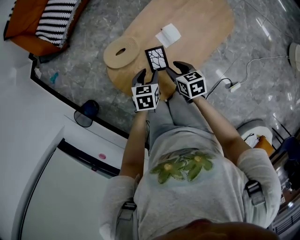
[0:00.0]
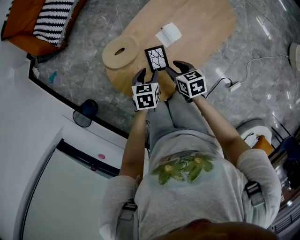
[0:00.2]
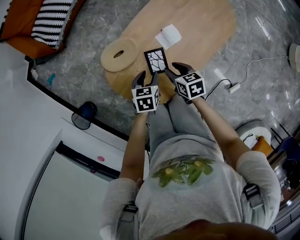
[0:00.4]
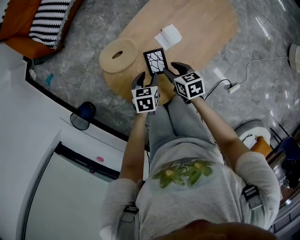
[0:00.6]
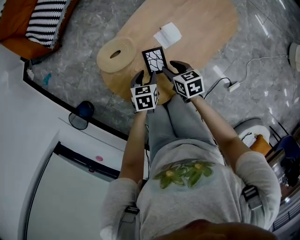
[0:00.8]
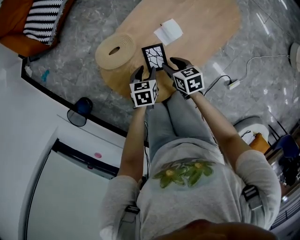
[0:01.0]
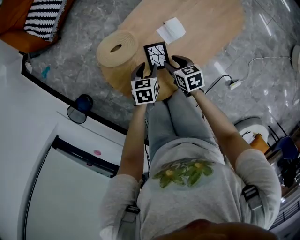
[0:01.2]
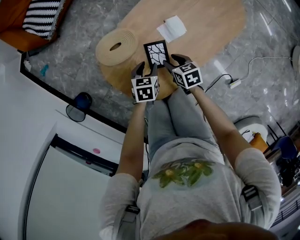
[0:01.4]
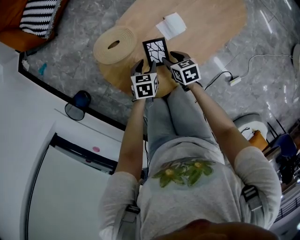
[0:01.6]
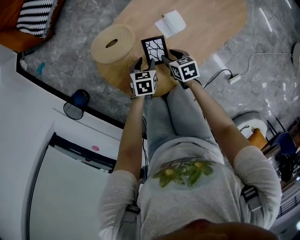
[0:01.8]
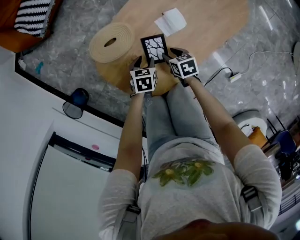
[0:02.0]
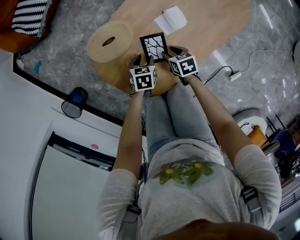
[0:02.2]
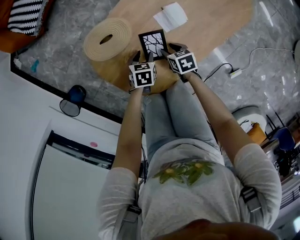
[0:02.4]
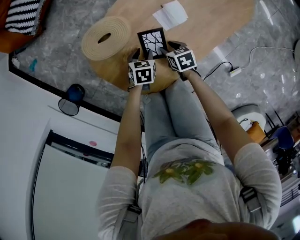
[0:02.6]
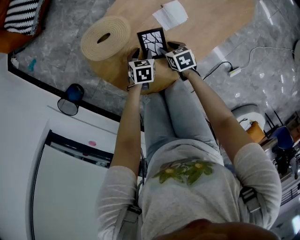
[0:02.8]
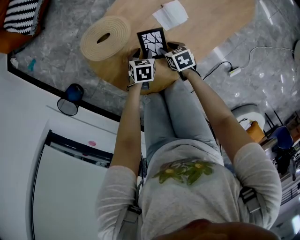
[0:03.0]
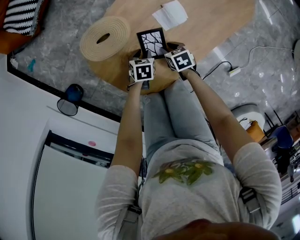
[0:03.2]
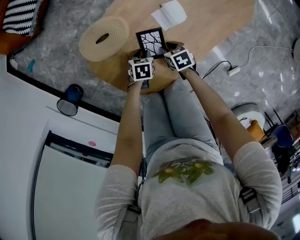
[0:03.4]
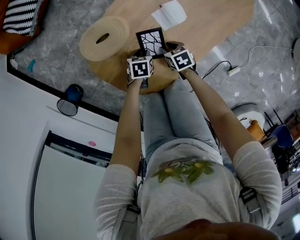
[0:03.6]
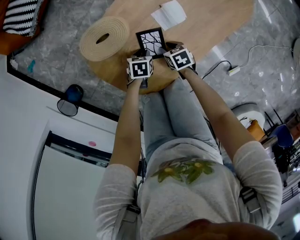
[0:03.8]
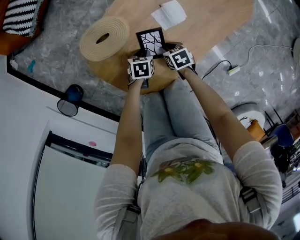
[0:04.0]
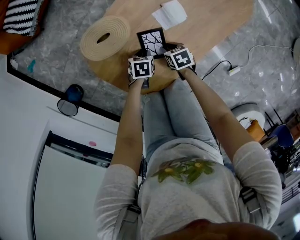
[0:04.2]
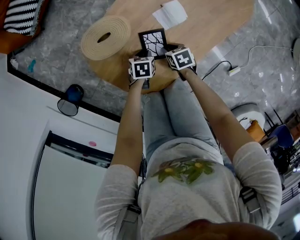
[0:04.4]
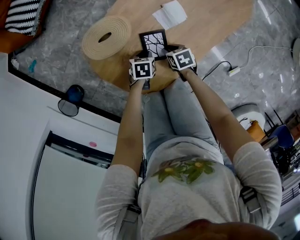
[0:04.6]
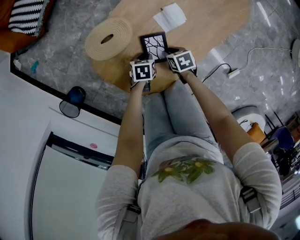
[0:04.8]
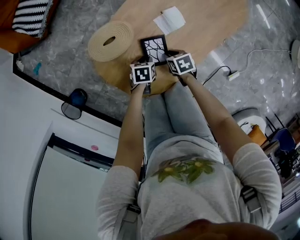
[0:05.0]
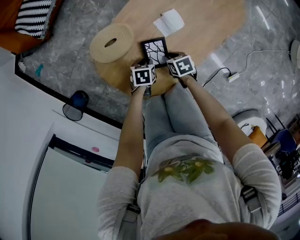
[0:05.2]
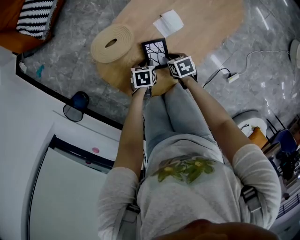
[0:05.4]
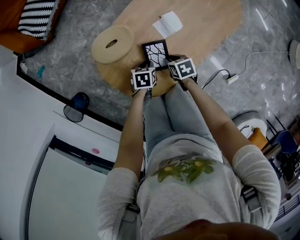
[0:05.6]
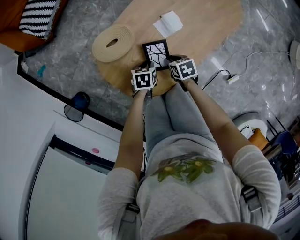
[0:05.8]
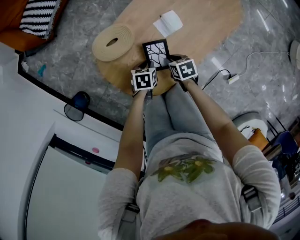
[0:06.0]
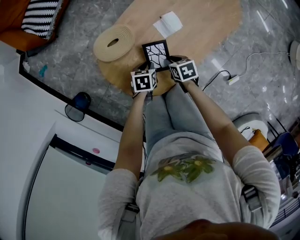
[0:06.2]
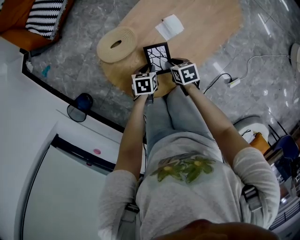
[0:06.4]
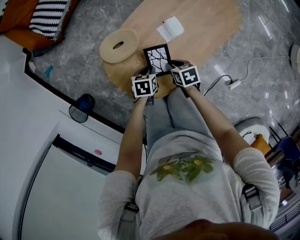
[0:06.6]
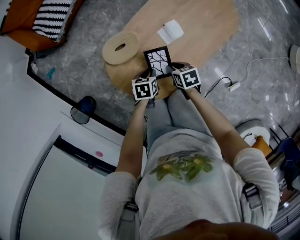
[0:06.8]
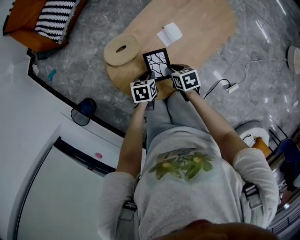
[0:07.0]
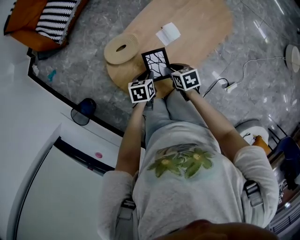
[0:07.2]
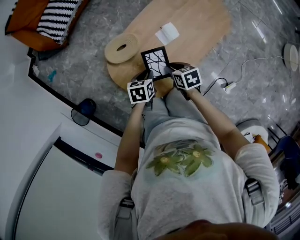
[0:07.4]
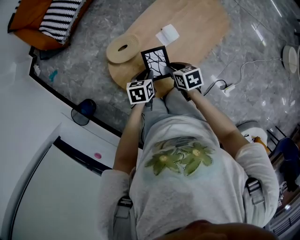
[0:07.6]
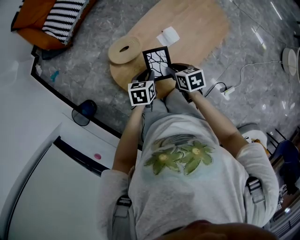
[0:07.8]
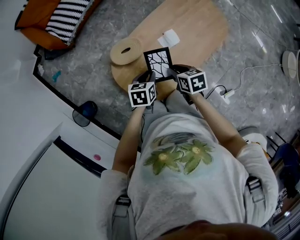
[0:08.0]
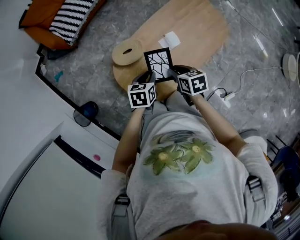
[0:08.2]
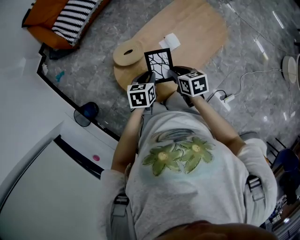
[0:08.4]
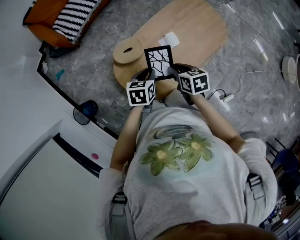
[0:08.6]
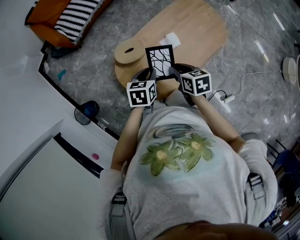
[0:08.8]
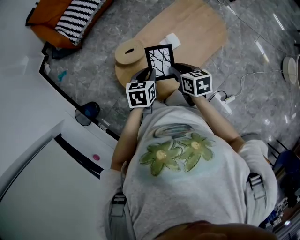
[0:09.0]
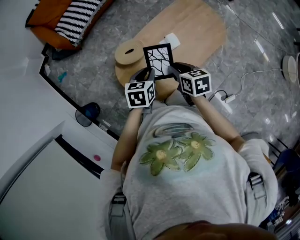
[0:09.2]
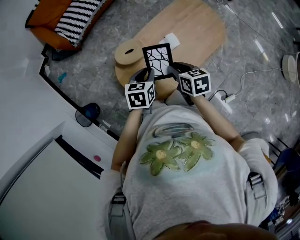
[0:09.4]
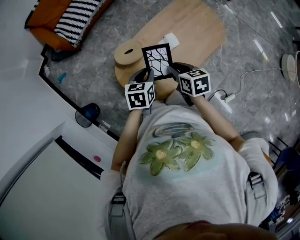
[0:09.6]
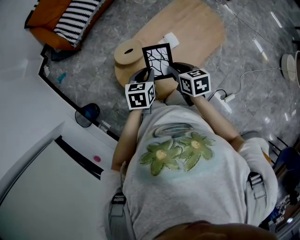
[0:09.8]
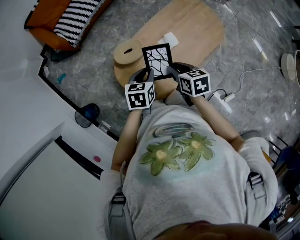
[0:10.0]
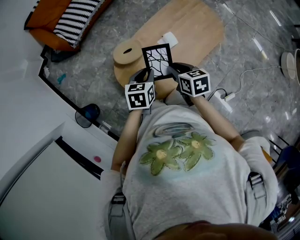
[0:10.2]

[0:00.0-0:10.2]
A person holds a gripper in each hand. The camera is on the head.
0:00.0 to 0:01.4: Both grippers move downward, approximately 10 cm.
0:01.4 to 0:03.0: The two grippers go some 10 cm downward.
0:03.0 to 0:04.4: The grippers move only a little.
0:04.4 to 0:05.8: Both grippers travel together upward, about 5 cm.
0:05.8 to 0:07.2: The two grippers go about 10 cm upward.
0:07.2 to 0:08.8: The two grippers go some 15 cm upward.
0:08.8 to 0:10.2: The grippers move only a little.

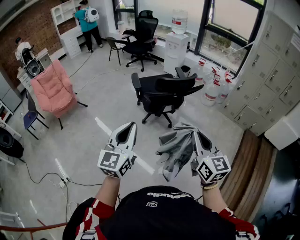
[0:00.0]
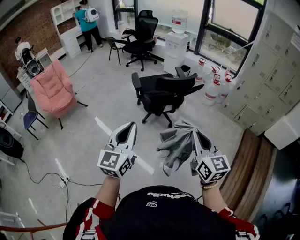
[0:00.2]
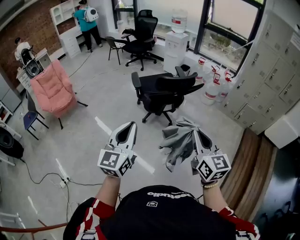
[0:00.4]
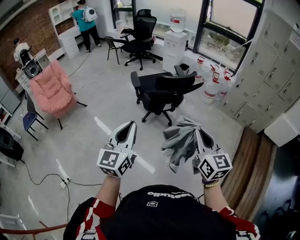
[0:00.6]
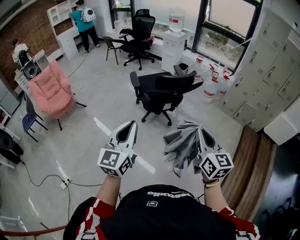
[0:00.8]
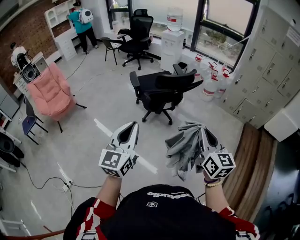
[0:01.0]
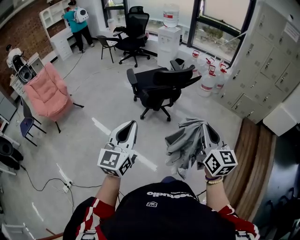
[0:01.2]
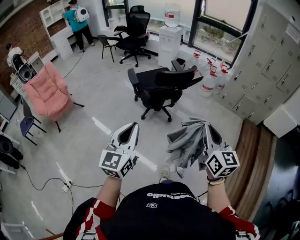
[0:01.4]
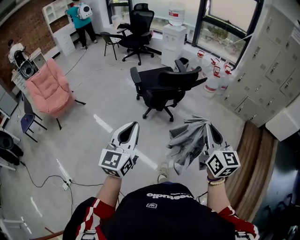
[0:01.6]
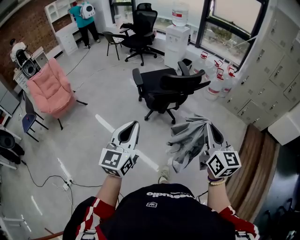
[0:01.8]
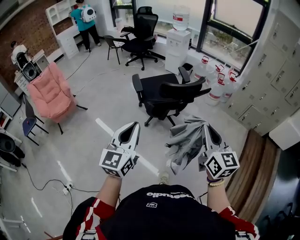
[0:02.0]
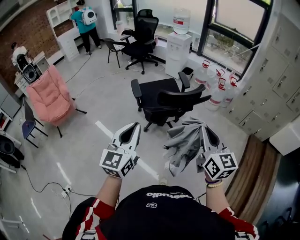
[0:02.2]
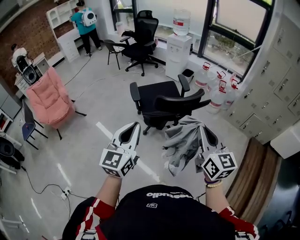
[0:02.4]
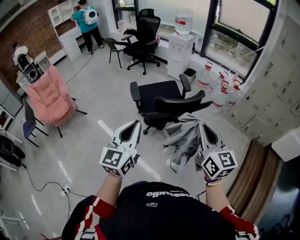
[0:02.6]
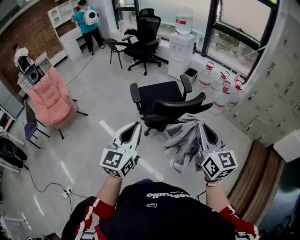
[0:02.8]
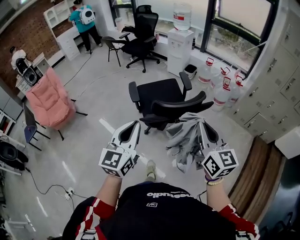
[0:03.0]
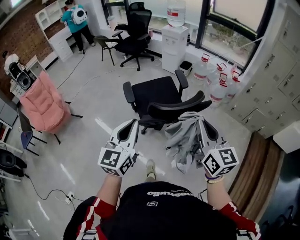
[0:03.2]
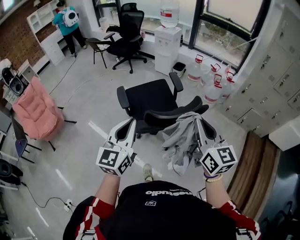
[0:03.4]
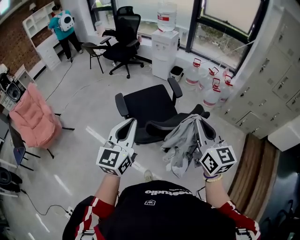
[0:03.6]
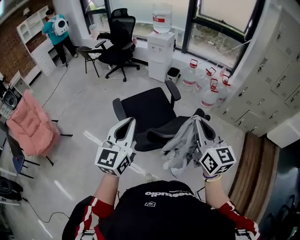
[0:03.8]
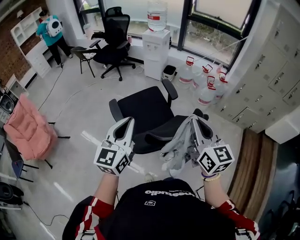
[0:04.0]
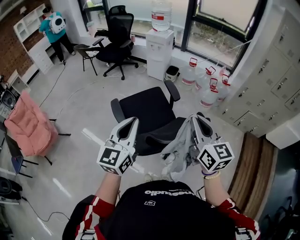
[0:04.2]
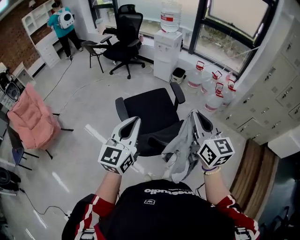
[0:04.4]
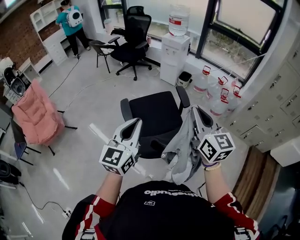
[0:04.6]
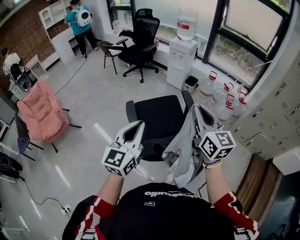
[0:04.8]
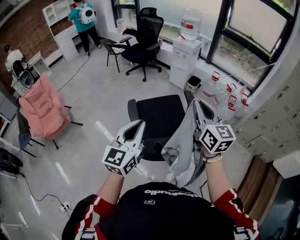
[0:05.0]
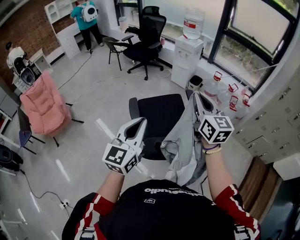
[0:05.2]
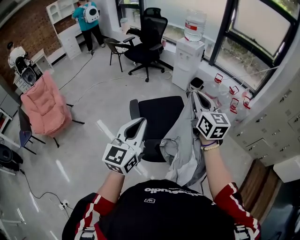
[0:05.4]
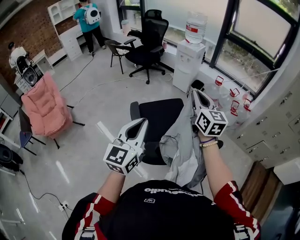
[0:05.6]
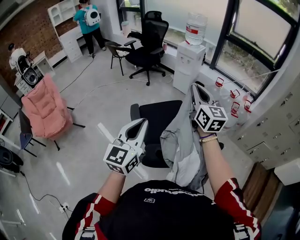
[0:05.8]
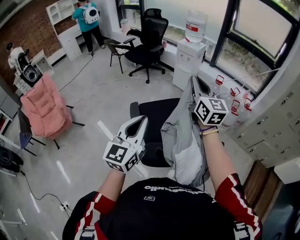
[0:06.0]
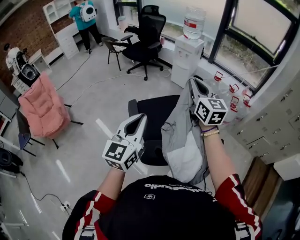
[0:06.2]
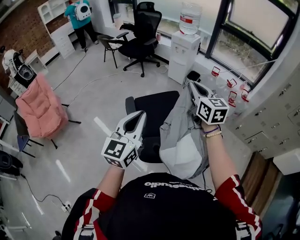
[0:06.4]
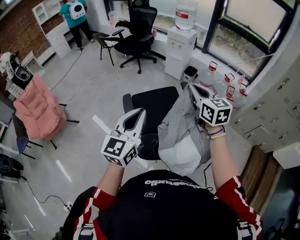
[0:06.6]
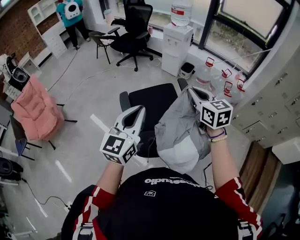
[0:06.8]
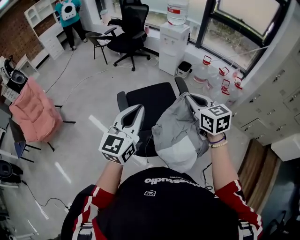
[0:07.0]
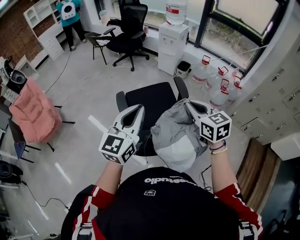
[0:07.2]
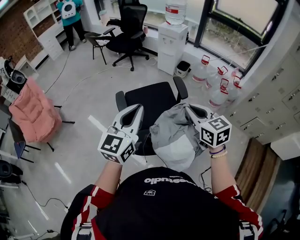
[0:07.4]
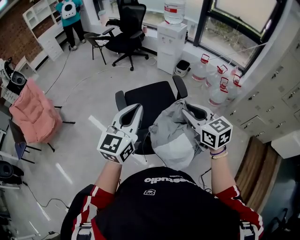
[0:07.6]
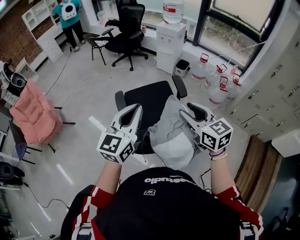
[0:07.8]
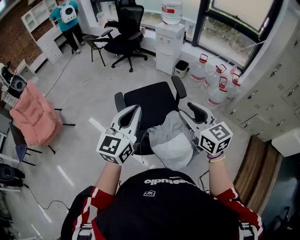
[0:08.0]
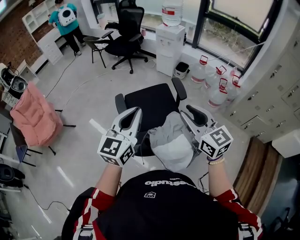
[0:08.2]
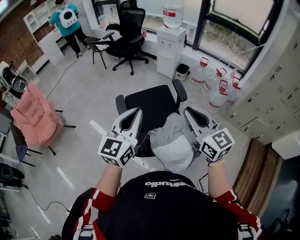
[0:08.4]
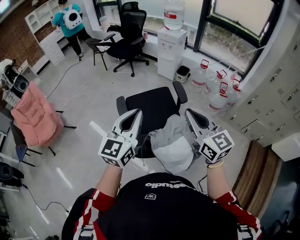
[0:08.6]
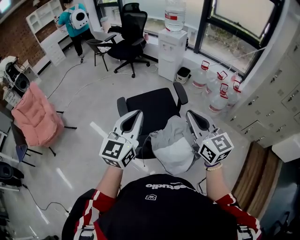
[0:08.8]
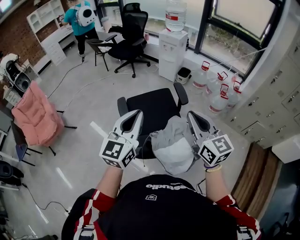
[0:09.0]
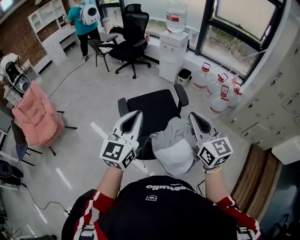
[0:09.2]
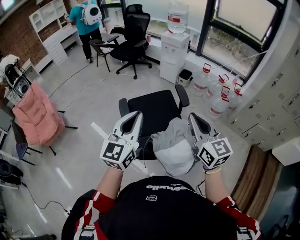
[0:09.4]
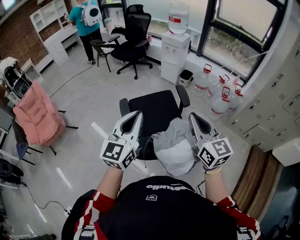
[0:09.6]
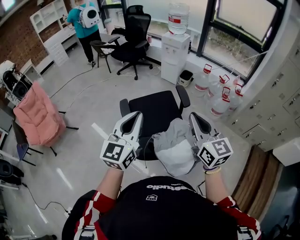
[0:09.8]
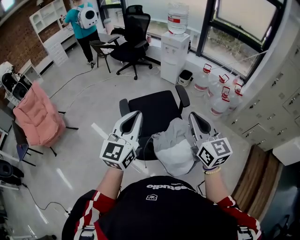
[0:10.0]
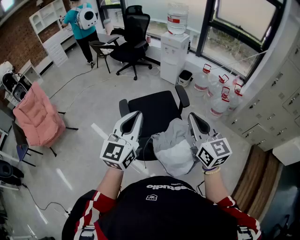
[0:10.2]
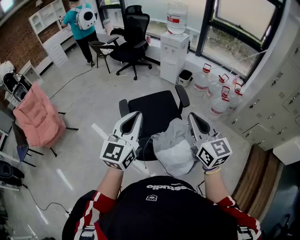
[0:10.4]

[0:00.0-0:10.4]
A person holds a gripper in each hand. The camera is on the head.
0:00.0 to 0:01.4: The left gripper ends up approximately 5 cm from where it was.
0:01.4 to 0:03.0: The grippers both shift forward by some 35 cm.
0:03.0 to 0:04.4: The two grippers go roughly 30 cm forward.
0:04.4 to 0:06.0: The left gripper heads forward, covering about 5 cm, while the right gripper moves forward, approximately 20 cm.
0:06.0 to 0:07.4: The left gripper shifts about 5 cm to the right; the right gripper moves downward, backward and to the right, approximately 20 cm, and changes its angle by about 30 degrees.
0:07.4 to 0:09.0: The right gripper goes some 5 cm upward, and opens and closes again.
0:09.0 to 0:10.4: The grippers make only small movements.

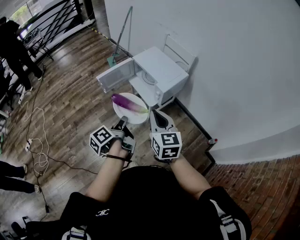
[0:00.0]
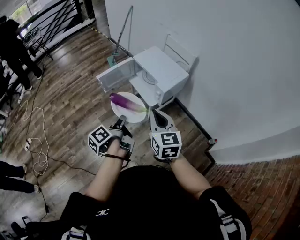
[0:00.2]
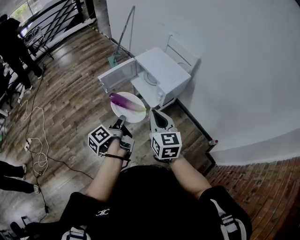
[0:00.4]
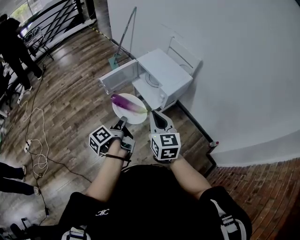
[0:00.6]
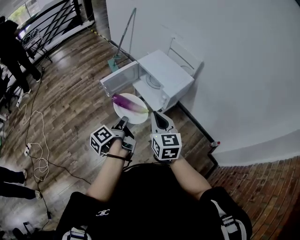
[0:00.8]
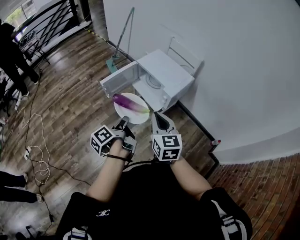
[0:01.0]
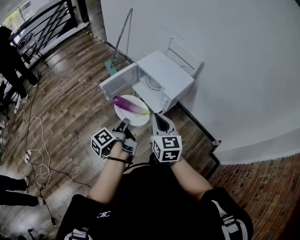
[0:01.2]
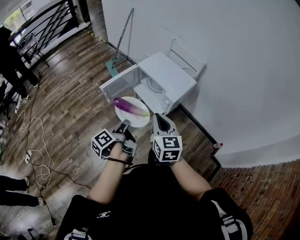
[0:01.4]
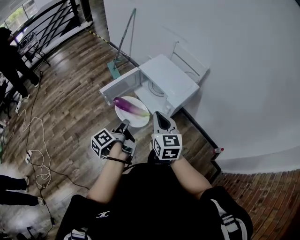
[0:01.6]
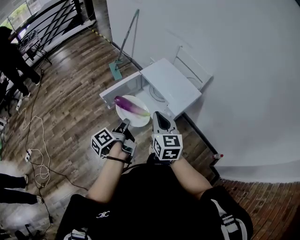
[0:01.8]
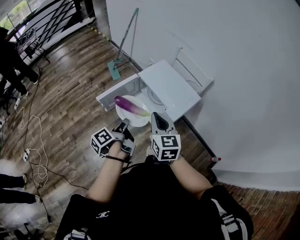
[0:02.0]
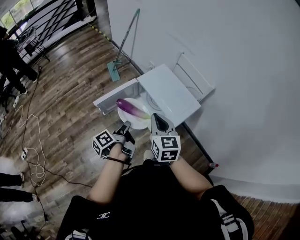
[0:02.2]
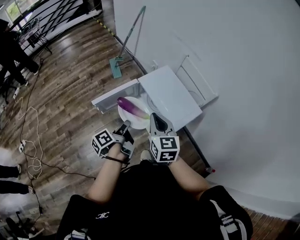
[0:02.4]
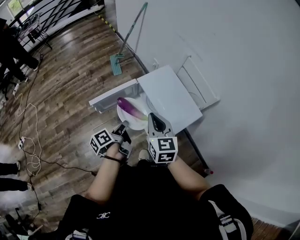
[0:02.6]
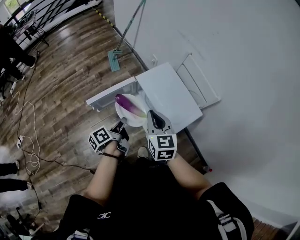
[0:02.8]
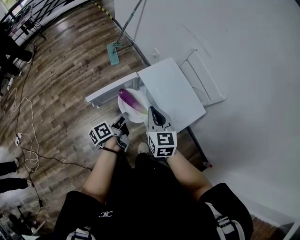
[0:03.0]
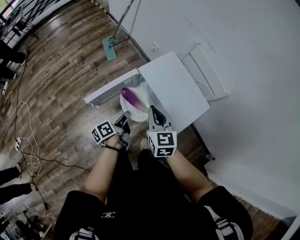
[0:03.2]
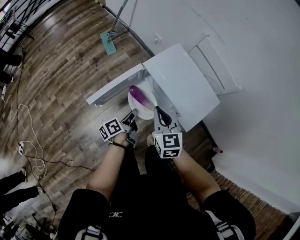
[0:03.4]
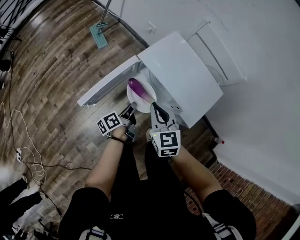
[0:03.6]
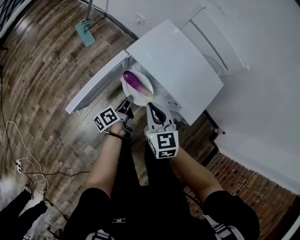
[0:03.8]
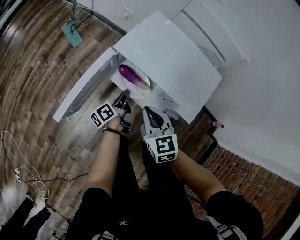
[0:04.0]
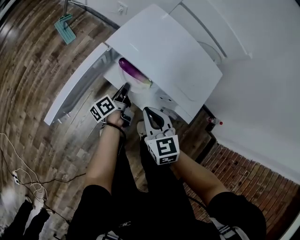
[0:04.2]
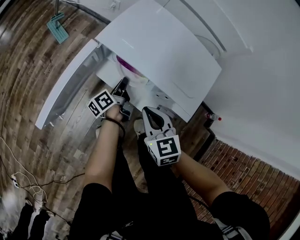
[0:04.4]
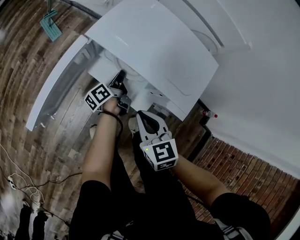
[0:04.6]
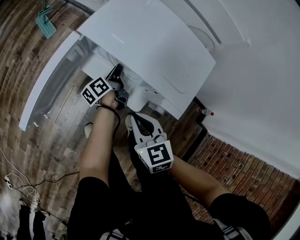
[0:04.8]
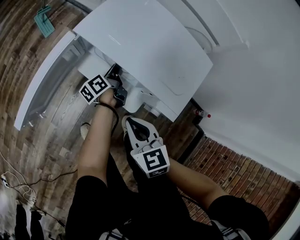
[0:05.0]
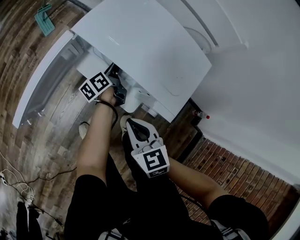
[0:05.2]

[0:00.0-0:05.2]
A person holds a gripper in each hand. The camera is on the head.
0:00.0 to 0:01.8: Both grippers move forward, some 20 cm.
0:01.8 to 0:03.4: The two grippers go roughly 25 cm forward and downward.
0:03.4 to 0:05.2: The right gripper moves downward and to the right, some 20 cm; the left gripper goes about 30 cm downward, forward and to the right.
